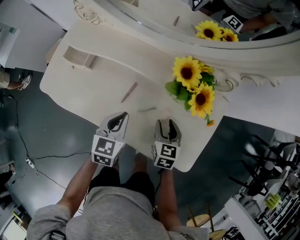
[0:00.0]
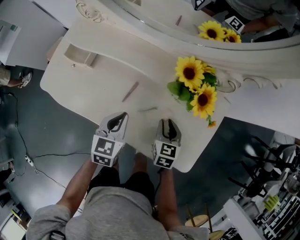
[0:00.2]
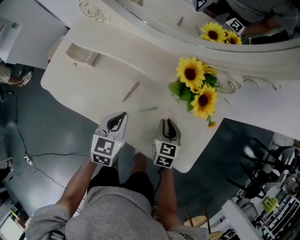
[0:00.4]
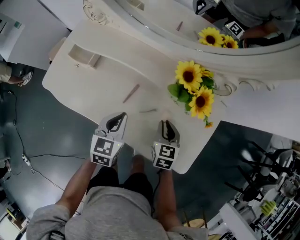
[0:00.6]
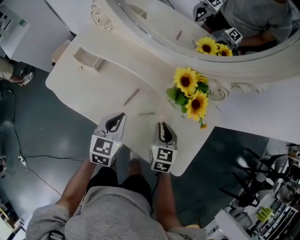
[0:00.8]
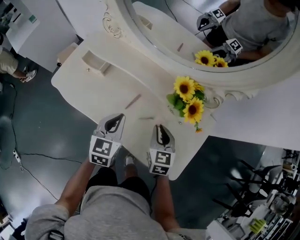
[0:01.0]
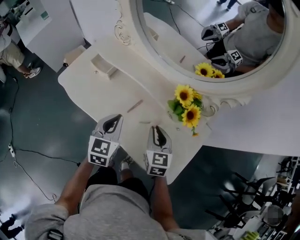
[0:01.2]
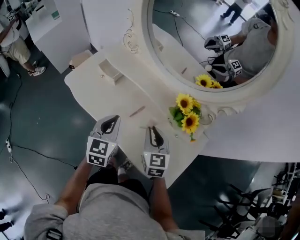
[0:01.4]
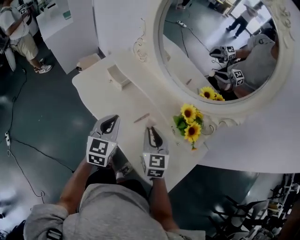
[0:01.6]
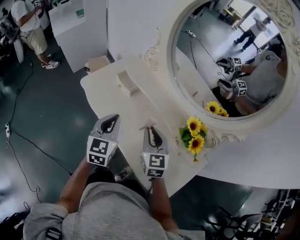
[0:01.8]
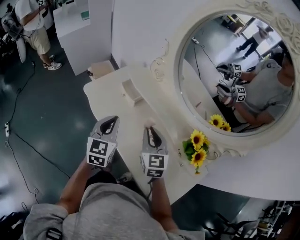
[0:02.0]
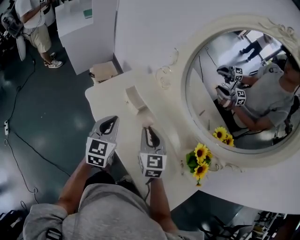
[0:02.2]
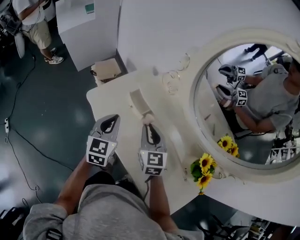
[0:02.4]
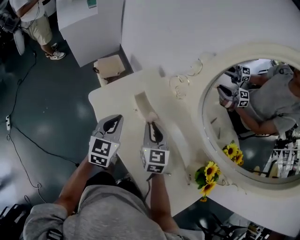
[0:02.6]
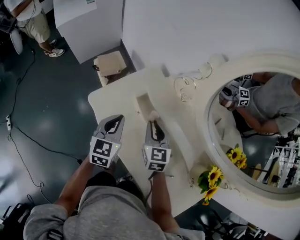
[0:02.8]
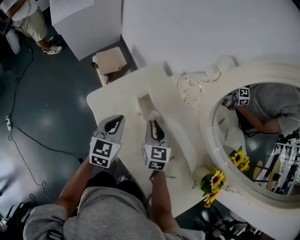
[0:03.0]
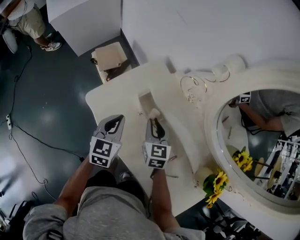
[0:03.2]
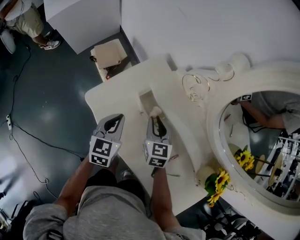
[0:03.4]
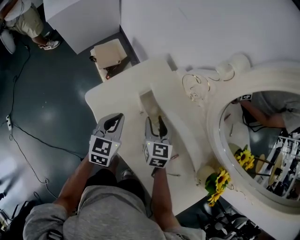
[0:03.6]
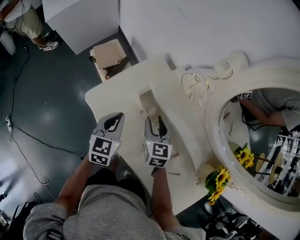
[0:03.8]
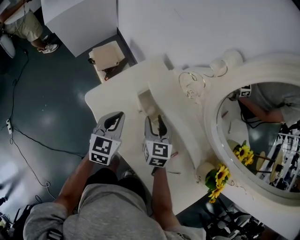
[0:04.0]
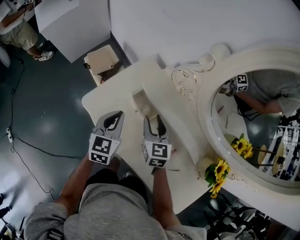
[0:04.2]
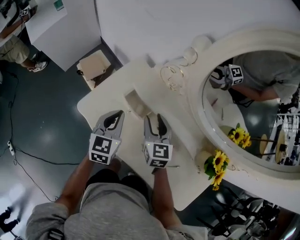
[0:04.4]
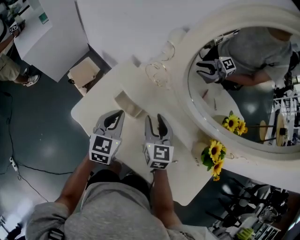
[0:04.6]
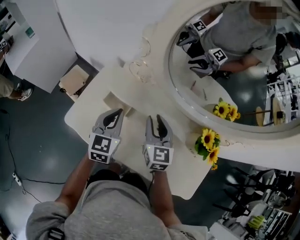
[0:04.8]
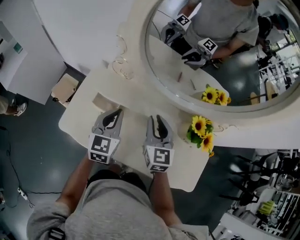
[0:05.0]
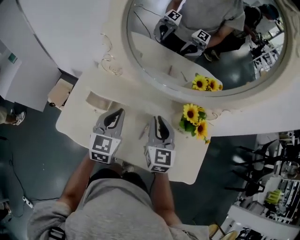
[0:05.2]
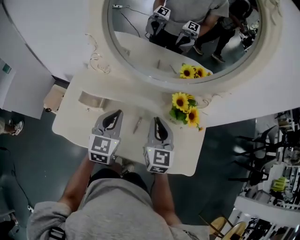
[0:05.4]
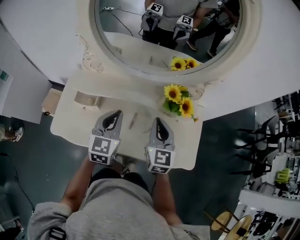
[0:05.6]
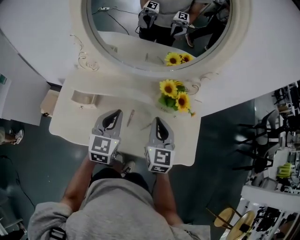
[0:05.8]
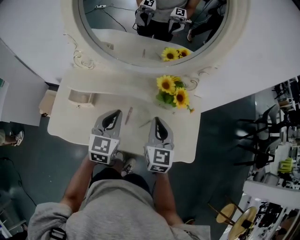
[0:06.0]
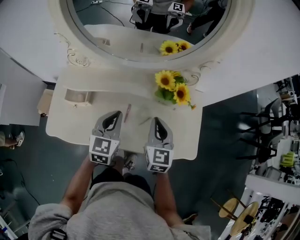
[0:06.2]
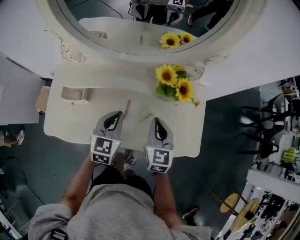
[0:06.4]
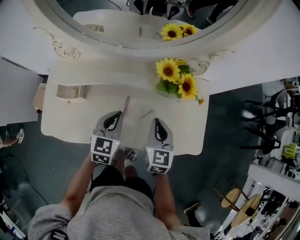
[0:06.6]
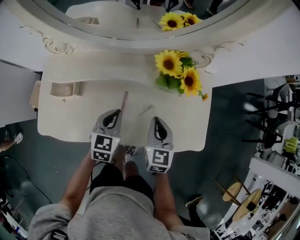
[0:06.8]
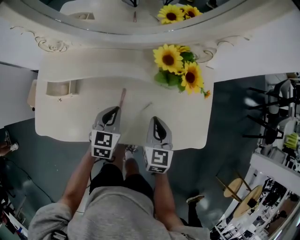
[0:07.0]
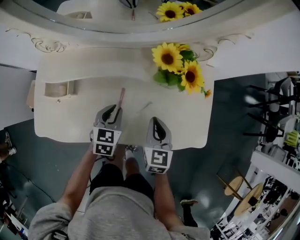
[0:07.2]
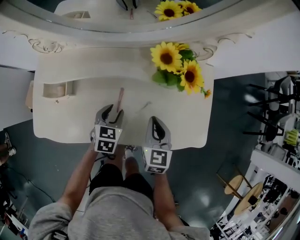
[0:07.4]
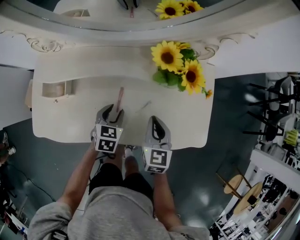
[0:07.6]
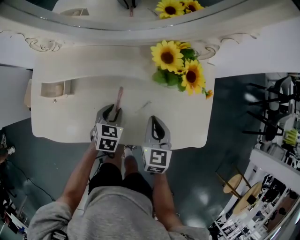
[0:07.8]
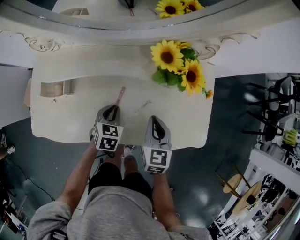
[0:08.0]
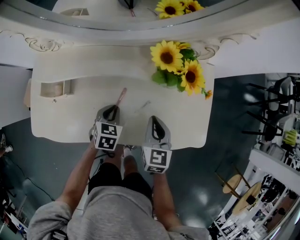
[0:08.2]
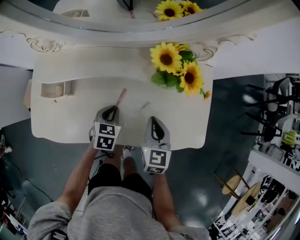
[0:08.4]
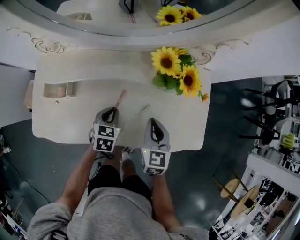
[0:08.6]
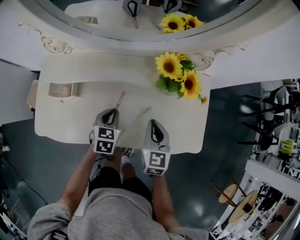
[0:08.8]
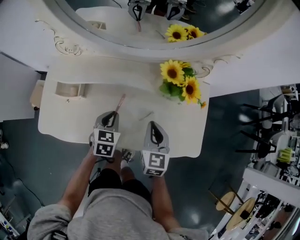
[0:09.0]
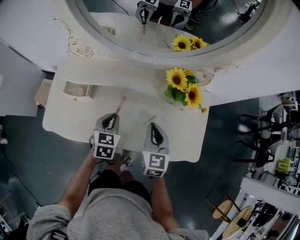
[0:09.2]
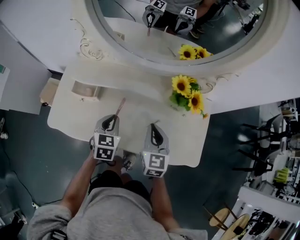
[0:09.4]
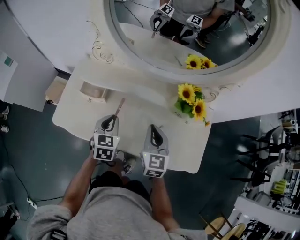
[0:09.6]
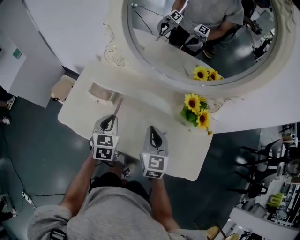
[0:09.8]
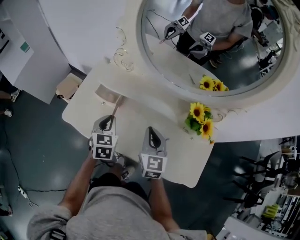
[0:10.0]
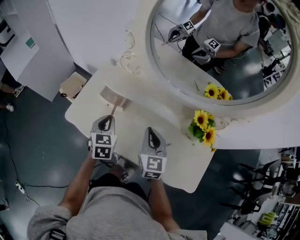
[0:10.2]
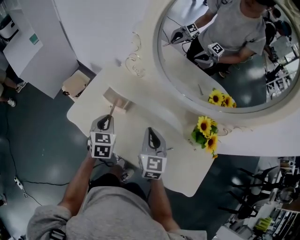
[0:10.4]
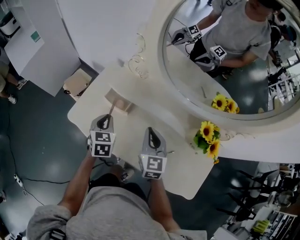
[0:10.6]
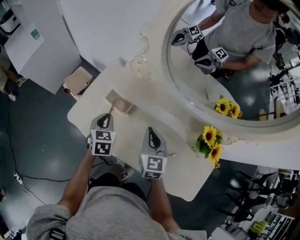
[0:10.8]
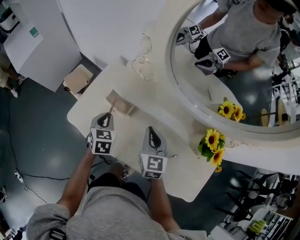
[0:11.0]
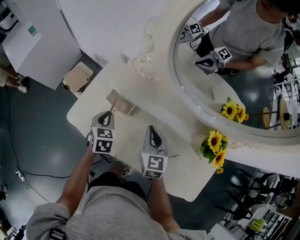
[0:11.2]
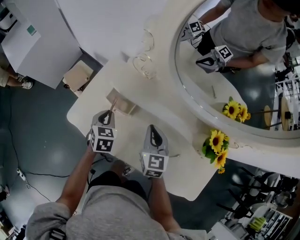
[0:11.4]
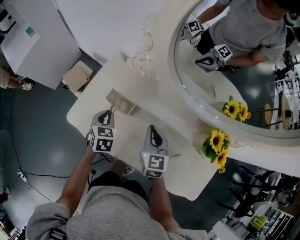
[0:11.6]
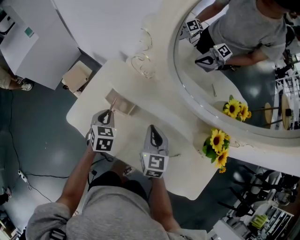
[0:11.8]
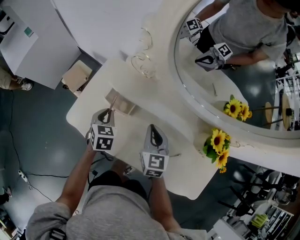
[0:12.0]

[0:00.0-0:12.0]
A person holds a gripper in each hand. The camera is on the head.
0:00.0 to 0:01.6: The two grippers go roughly 15 cm upward. The right gripper rotates some 40 degrees, and closes up. The left gripper rotates roughly 30 degrees.
0:01.6 to 0:03.0: The grippers both shift forward and to the left by roughly 30 cm.
0:03.0 to 0:04.4: The right gripper shifts by roughly 5 cm, and opens.
0:04.4 to 0:06.0: The left gripper shifts by about 30 cm, and turns by approximately 40 degrees; the right gripper moves approximately 35 cm, rotates some 40 degrees, and closes its fingers.
0:06.0 to 0:07.6: Both grippers travel together downward, about 20 cm. The left gripper points its fingers roughly 30 degrees further downward, and opens up.
0:07.6 to 0:09.0: The right gripper changes place by approximately 5 cm, while the left gripper goes about 5 cm upward, and closes its fingers.
0:09.0 to 0:10.4: The left gripper ends up approximately 25 cm from where it was, and rotates some 30 degrees. Meanwhile the right gripper ends up some 20 cm from where it was, and turns by some 30 degrees.
0:10.4 to 0:12.0: The left gripper is displaced downward and forward by approximately 10 cm; the right gripper travels forward and downward by roughly 10 cm.

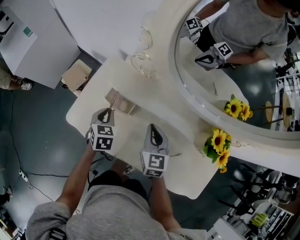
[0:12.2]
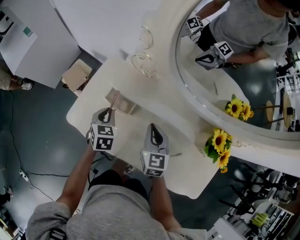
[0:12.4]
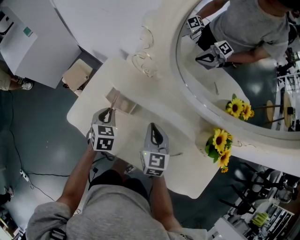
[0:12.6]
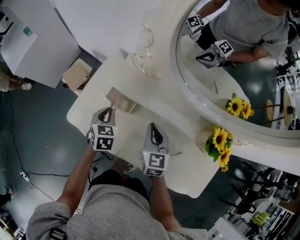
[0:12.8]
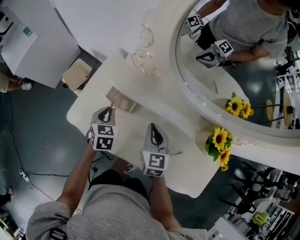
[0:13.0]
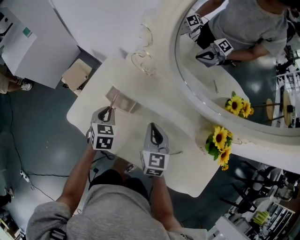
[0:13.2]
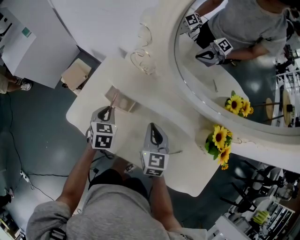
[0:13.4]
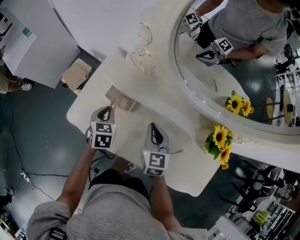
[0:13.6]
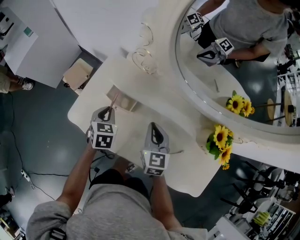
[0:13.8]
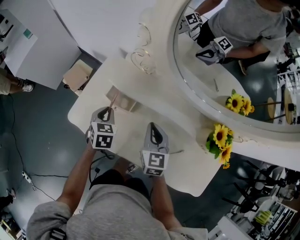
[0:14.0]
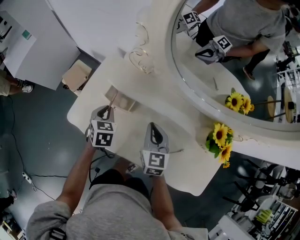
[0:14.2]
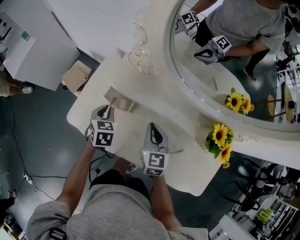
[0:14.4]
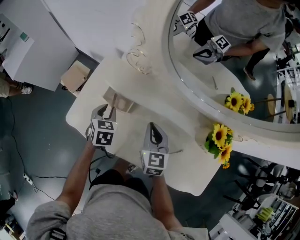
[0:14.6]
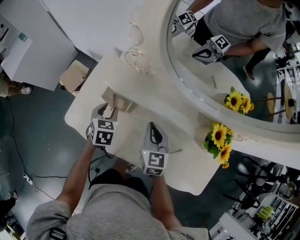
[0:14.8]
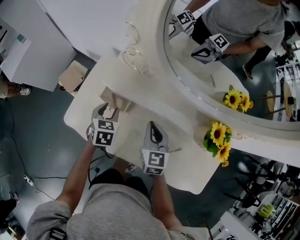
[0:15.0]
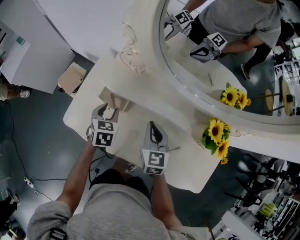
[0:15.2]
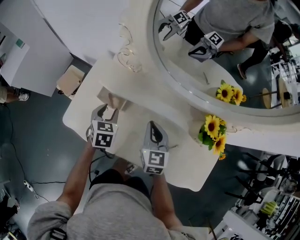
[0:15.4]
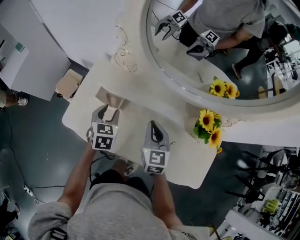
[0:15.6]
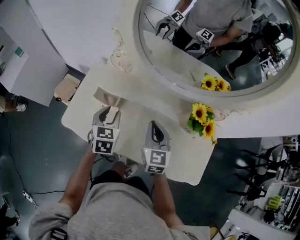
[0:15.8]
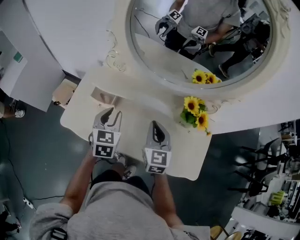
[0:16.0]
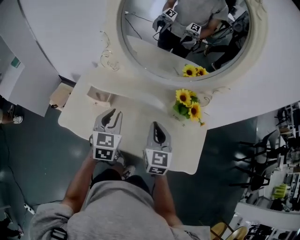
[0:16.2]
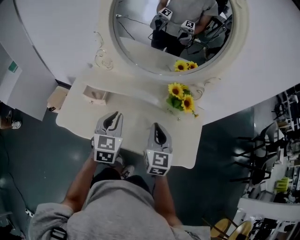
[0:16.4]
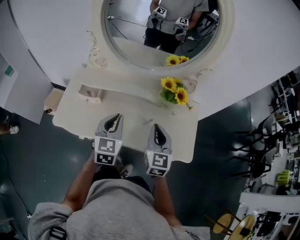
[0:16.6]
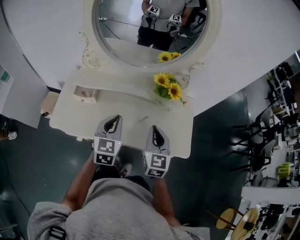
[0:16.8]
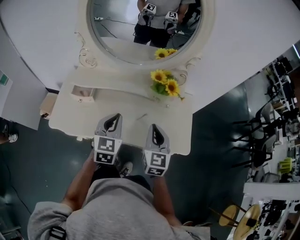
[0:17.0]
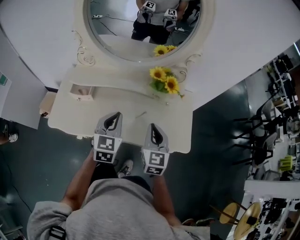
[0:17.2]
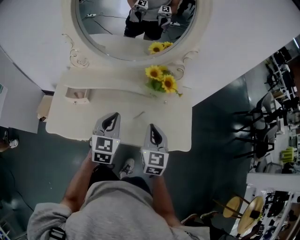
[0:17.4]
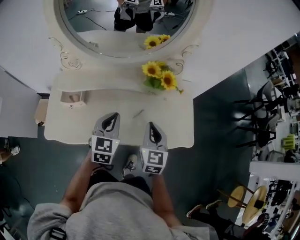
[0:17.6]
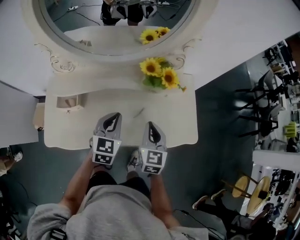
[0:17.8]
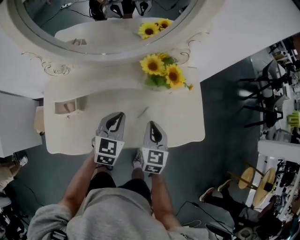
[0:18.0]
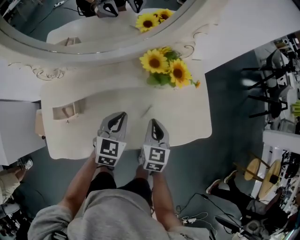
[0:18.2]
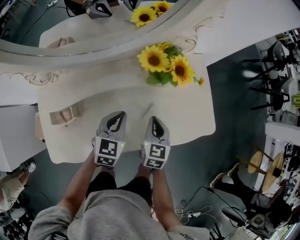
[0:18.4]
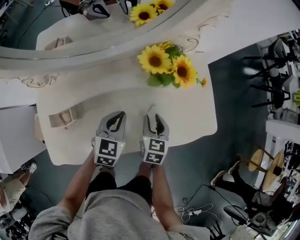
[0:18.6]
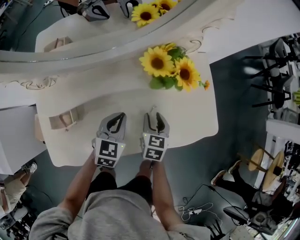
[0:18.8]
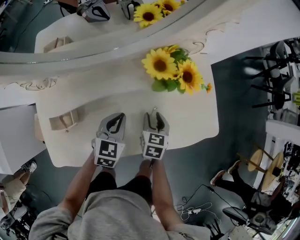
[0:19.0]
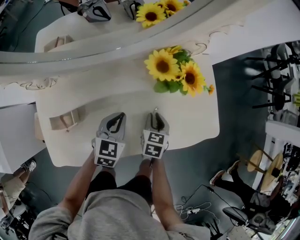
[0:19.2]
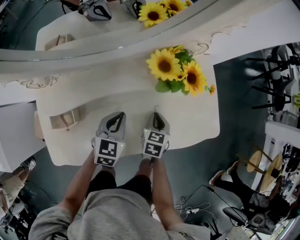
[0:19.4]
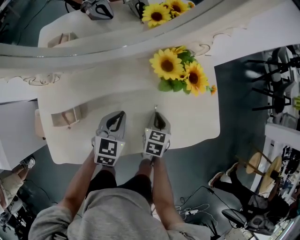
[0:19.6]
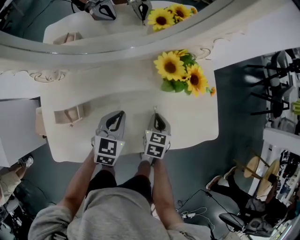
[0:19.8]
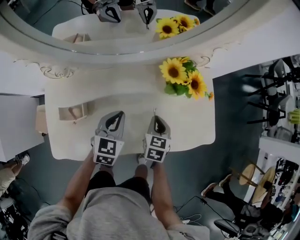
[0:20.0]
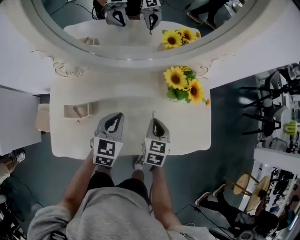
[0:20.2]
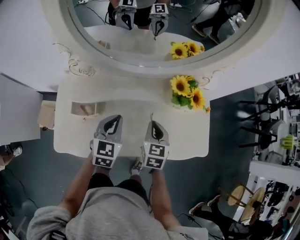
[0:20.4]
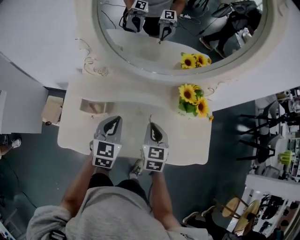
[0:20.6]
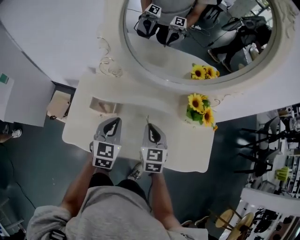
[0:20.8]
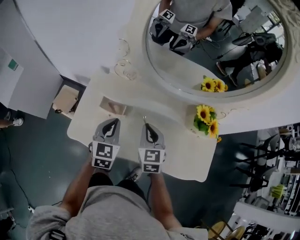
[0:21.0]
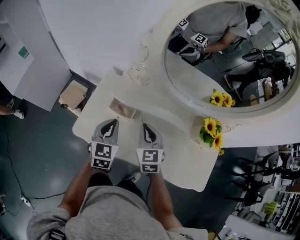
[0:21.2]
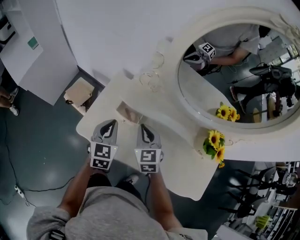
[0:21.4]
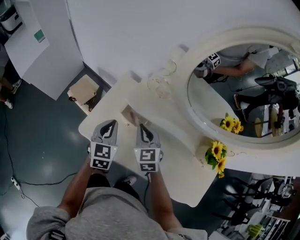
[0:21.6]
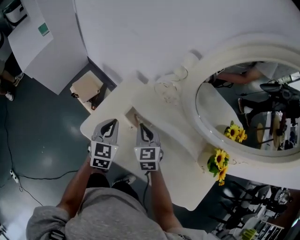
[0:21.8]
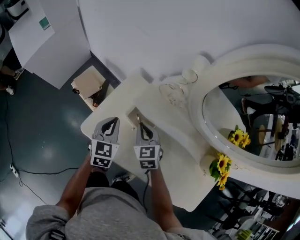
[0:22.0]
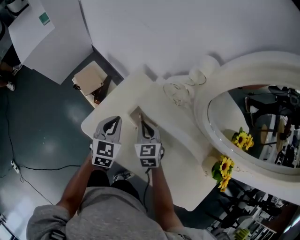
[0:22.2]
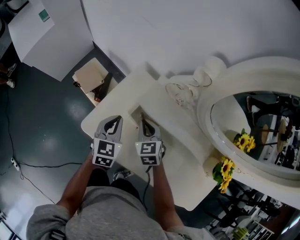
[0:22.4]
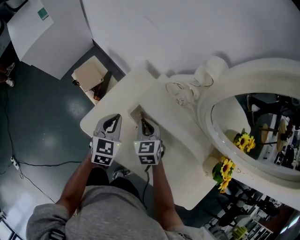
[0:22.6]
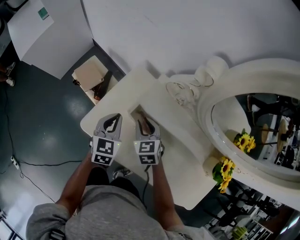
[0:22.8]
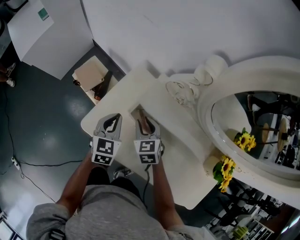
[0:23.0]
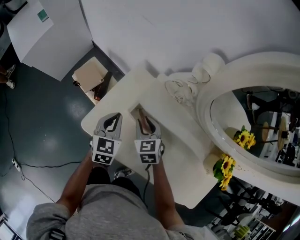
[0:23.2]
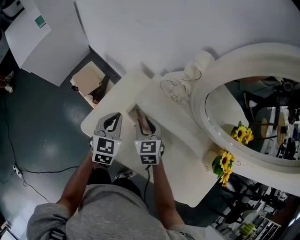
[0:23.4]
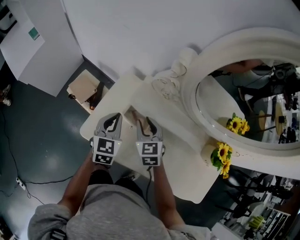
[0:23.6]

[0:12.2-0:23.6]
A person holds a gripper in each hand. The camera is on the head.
0:12.2 to 0:13.6: Both grippers stay put.
0:13.6 to 0:15.0: The left gripper opens.
0:15.0 to 0:16.4: The left gripper is displaced upward, to the right and backward by about 30 cm, swivels approximately 30 degrees, and closes up, while the right gripper heads backward, to the right and upward, covering approximately 25 cm, and swivels some 20 degrees.
0:16.4 to 0:17.8: The left gripper moves to the right and downward, some 10 cm, and swivels roughly 20 degrees. The right gripper is displaced downward and to the right by approximately 10 cm, and rotates about 20 degrees.
0:17.8 to 0:19.4: The right gripper is displaced downward by approximately 15 cm, changes its angle by about 30 degrees, and opens, then closes once more. Meanwhile the left gripper moves downward and forward, some 10 cm.
0:19.4 to 0:20.8: The left gripper moves about 20 cm, and changes its angle by about 30 degrees. Meanwhile the right gripper travels upward by roughly 20 cm, and turns by approximately 40 degrees.
0:20.8 to 0:22.2: The left gripper ends up some 20 cm from where it was, and rotates some 30 degrees, while the right gripper ends up some 25 cm from where it was, and turns by roughly 40 degrees.
0:22.2 to 0:23.6: The right gripper moves approximately 5 cm, and opens its fingers.
